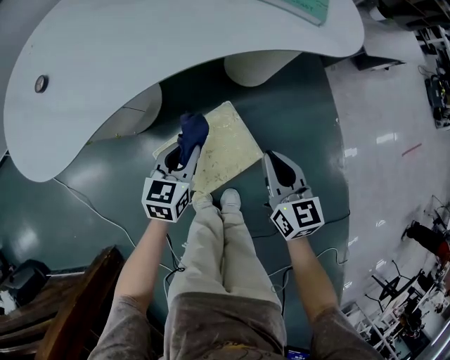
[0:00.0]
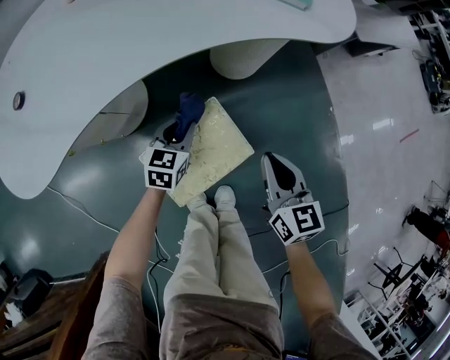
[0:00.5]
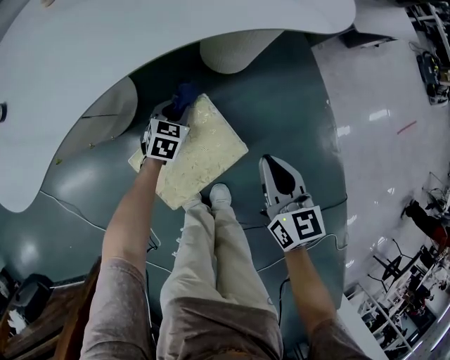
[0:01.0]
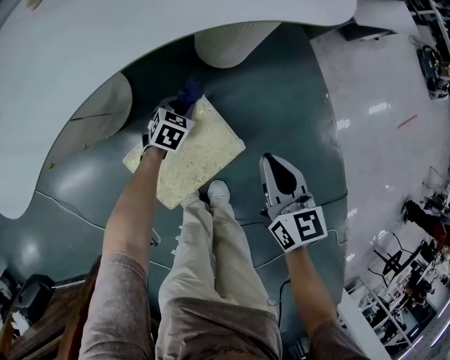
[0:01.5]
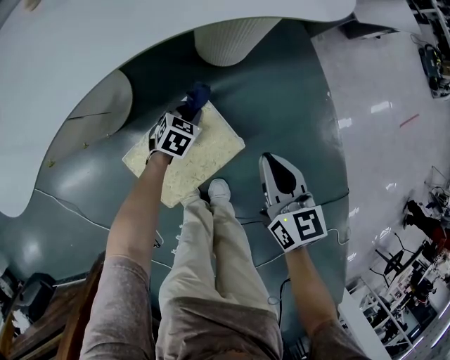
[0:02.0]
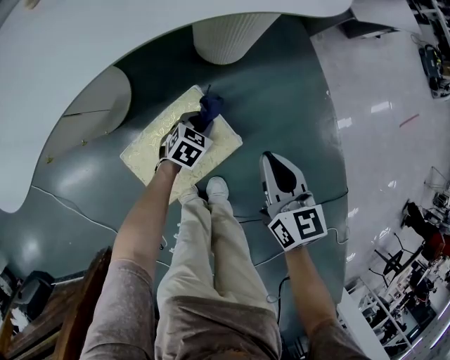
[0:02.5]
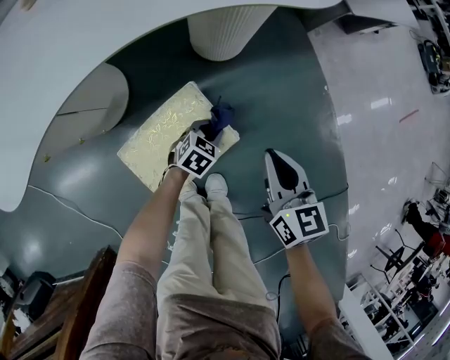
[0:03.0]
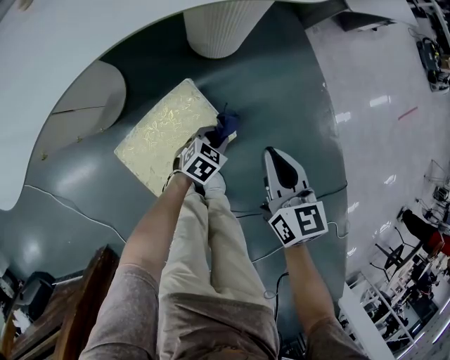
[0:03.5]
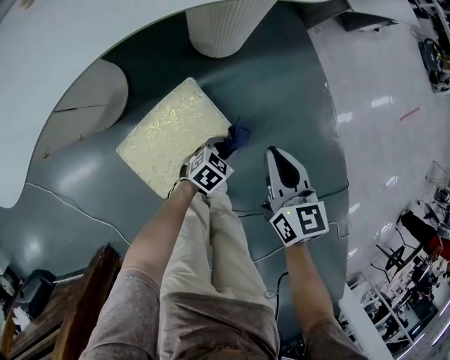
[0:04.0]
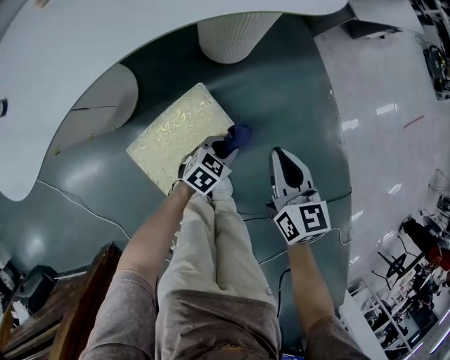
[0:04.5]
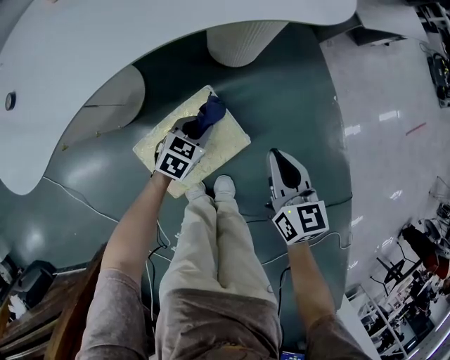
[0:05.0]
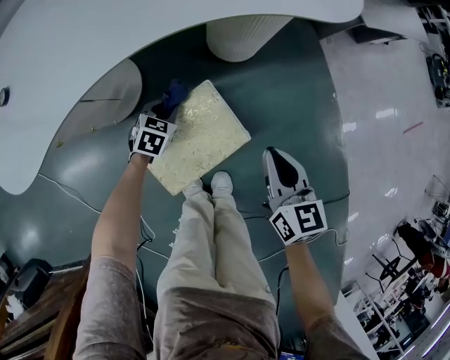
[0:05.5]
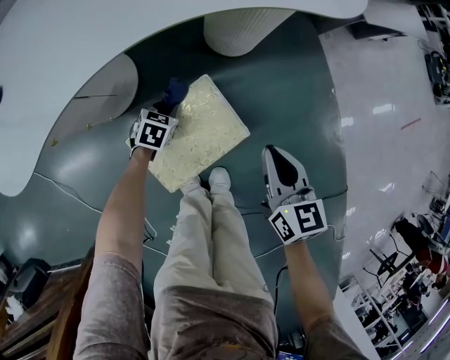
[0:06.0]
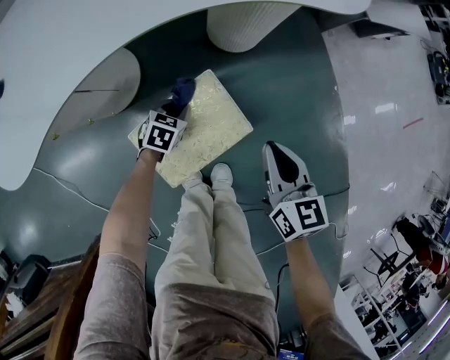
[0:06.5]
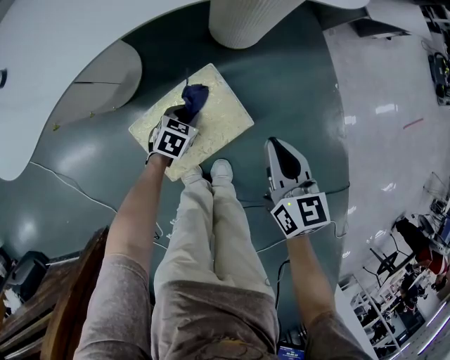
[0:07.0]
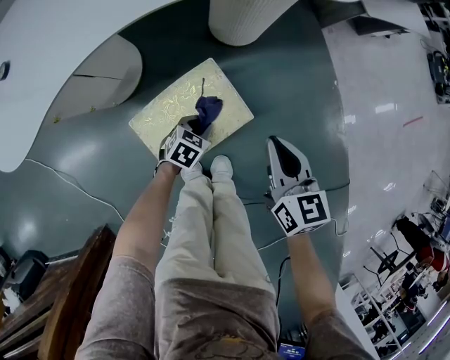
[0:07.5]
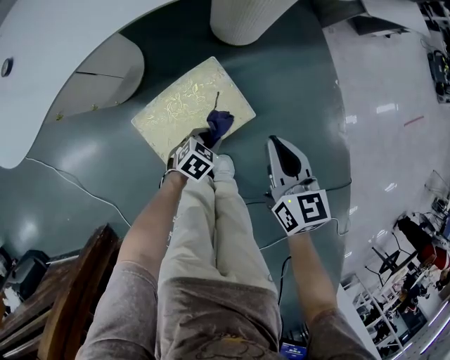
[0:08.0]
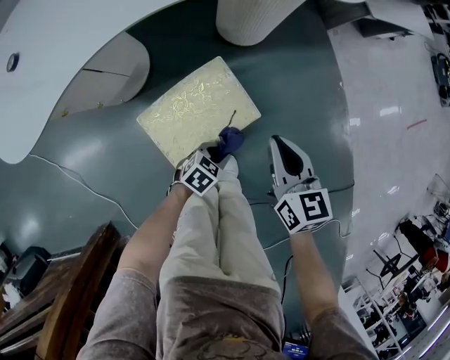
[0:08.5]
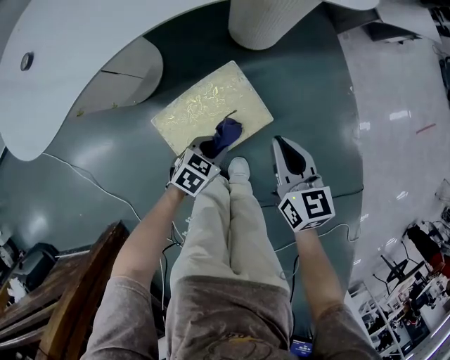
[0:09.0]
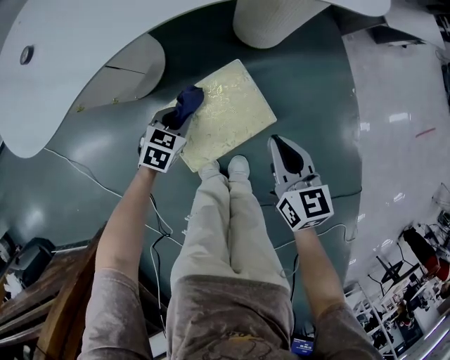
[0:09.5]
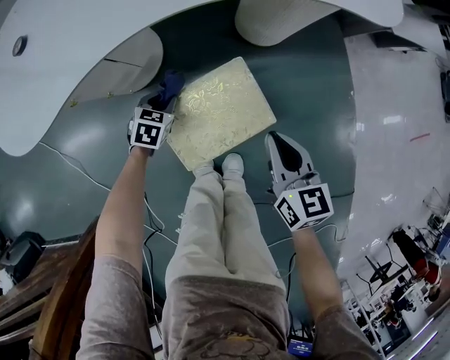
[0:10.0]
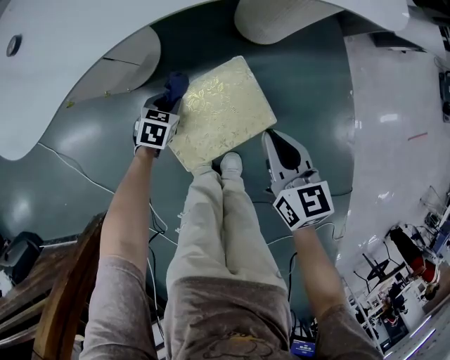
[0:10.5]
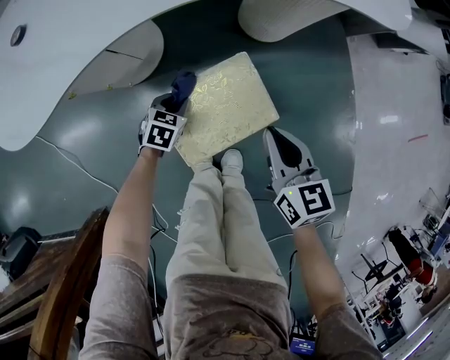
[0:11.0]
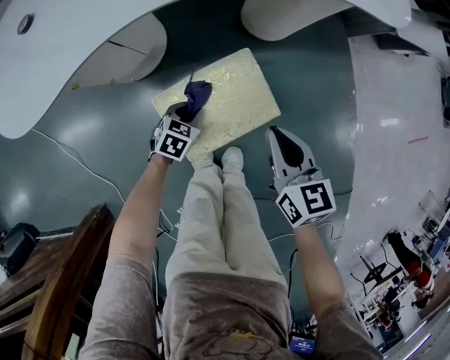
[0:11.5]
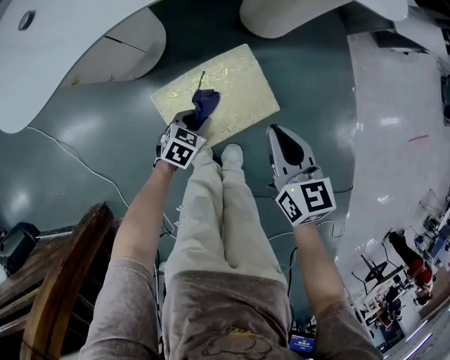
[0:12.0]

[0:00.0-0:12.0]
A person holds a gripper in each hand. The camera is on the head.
0.0 to 2.0 s: The left gripper is displaced downward, to the right and forward by some 25 cm, and changes its angle by some 30 degrees. Meanwhile the right gripper goes about 5 cm to the right.
2.0 to 4.0 s: The left gripper travels to the right and backward by approximately 20 cm.
4.0 to 6.0 s: The left gripper heads to the left, covering some 25 cm, and changes its angle by about 30 degrees.
6.0 to 8.0 s: The left gripper travels to the right and backward by approximately 20 cm.
8.0 to 10.0 s: The left gripper ends up approximately 25 cm from where it was, and rotates approximately 30 degrees. The right gripper ends up approximately 5 cm from where it was.
10.0 to 12.0 s: The left gripper travels backward and to the right by approximately 15 cm.

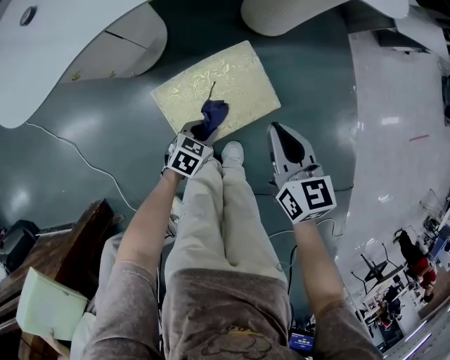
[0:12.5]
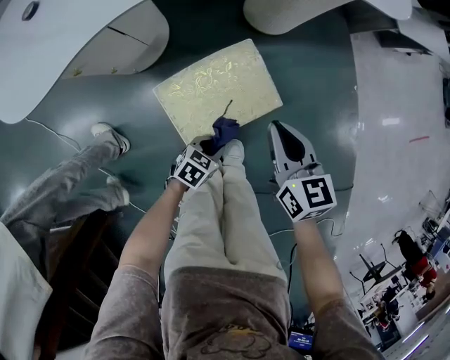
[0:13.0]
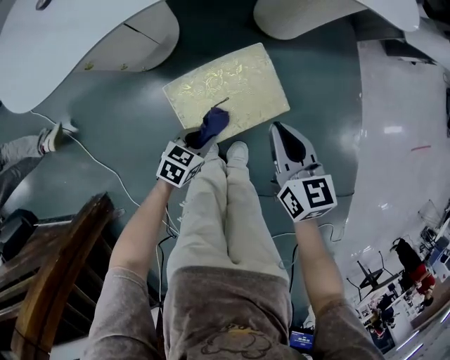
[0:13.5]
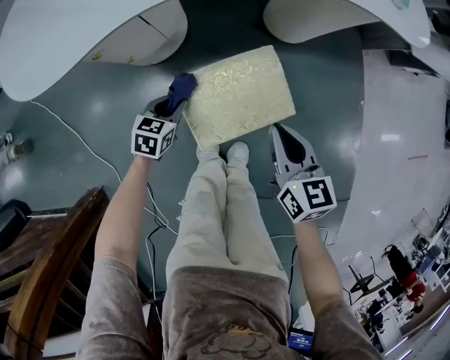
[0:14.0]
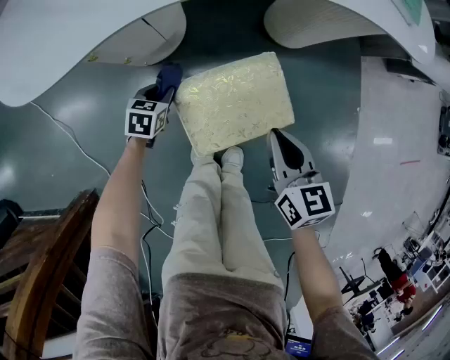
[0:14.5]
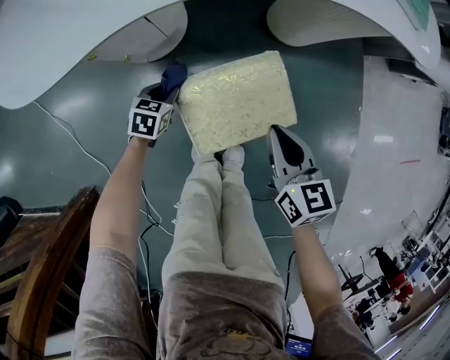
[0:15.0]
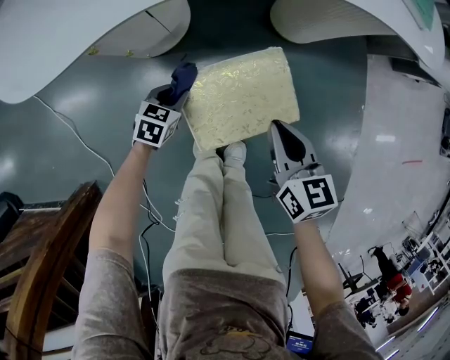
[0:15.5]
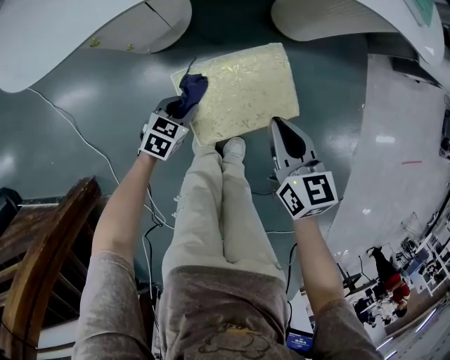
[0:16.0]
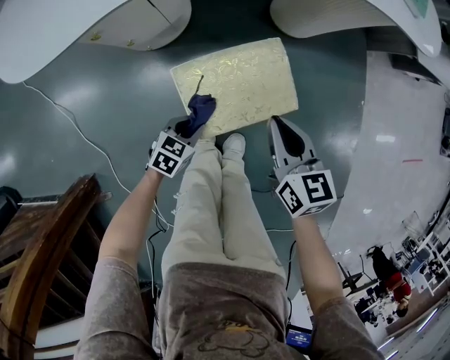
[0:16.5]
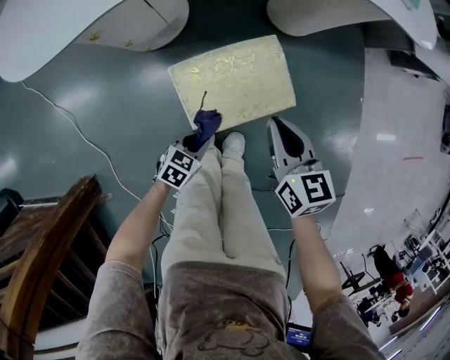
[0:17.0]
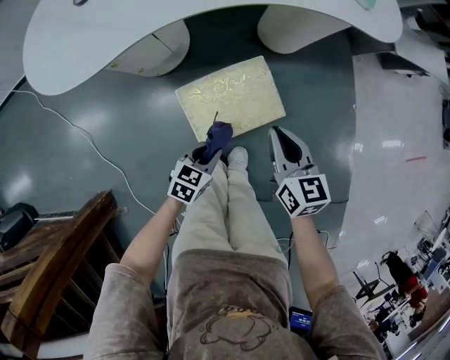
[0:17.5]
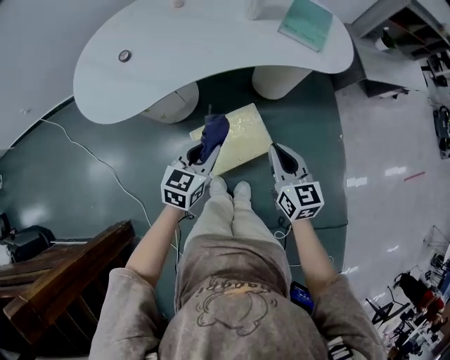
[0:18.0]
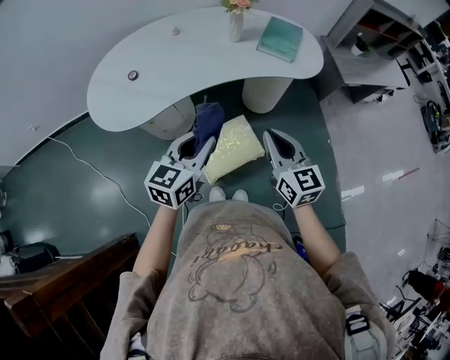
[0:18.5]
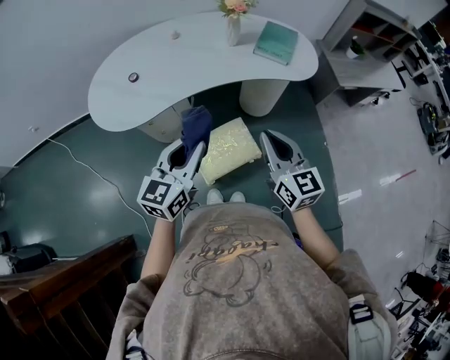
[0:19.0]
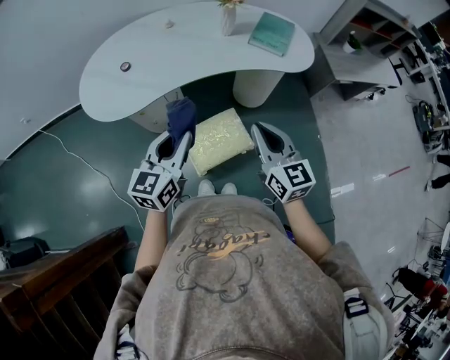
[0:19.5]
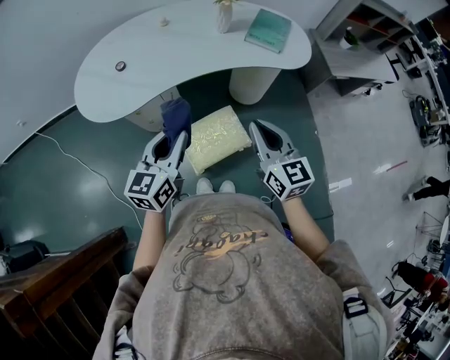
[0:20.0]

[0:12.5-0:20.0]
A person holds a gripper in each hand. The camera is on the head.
12.5 to 14.5 s: The left gripper changes place by about 25 cm, and rotates roughly 20 degrees, while the right gripper ends up about 5 cm from where it was.
14.5 to 16.5 s: The left gripper moves backward and to the right, approximately 20 cm.
16.5 to 18.0 s: The right gripper is displaced upward by approximately 20 cm. Meanwhile the left gripper shifts about 35 cm upward, and rotates about 30 degrees.
18.0 to 20.0 s: Both grippers travel together upward, about 15 cm. The left gripper swivels roughly 20 degrees.

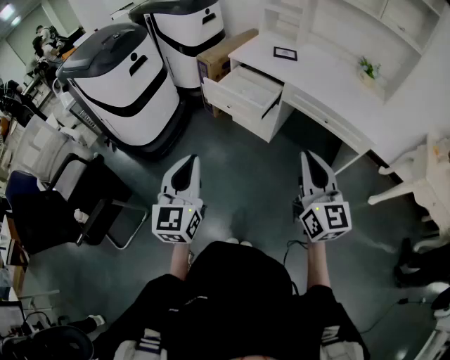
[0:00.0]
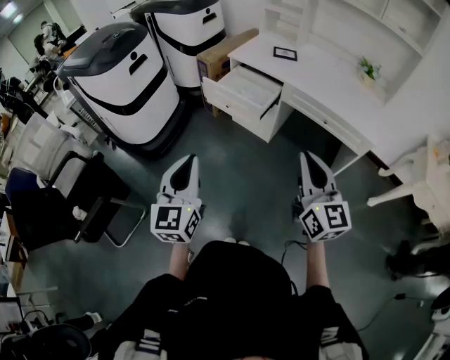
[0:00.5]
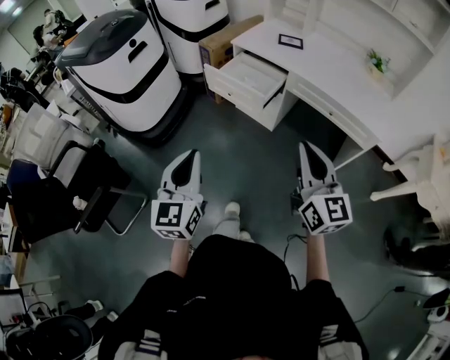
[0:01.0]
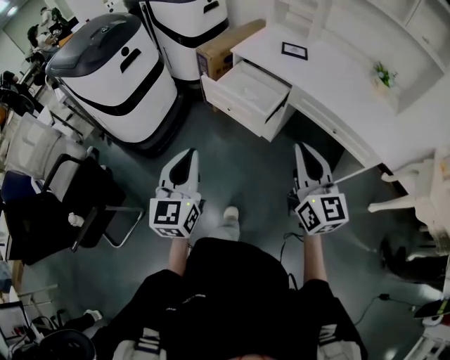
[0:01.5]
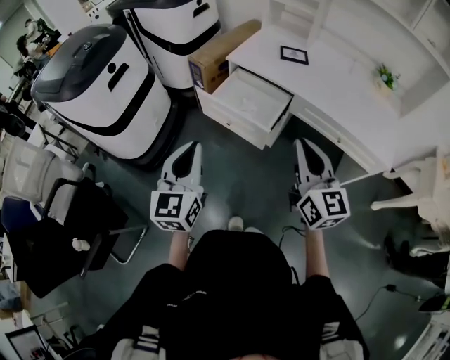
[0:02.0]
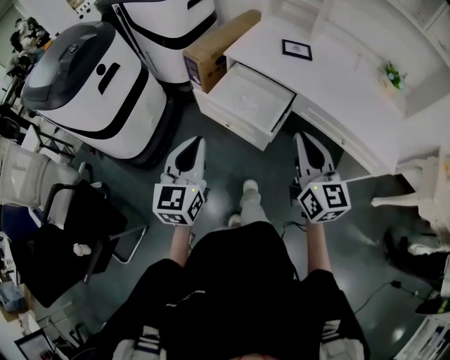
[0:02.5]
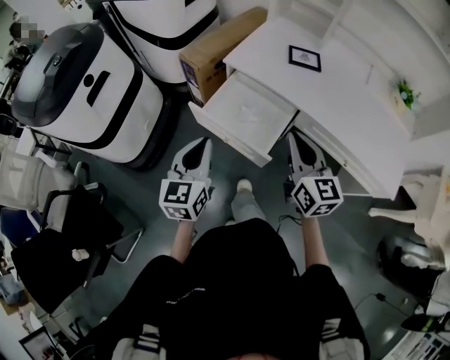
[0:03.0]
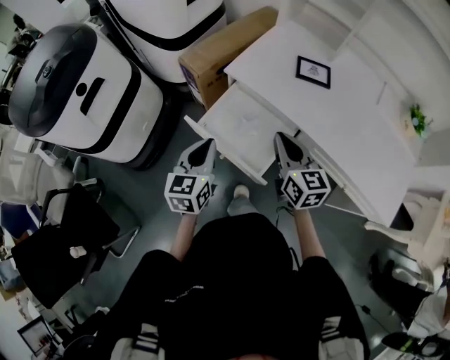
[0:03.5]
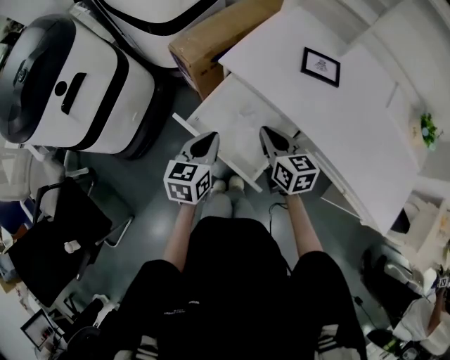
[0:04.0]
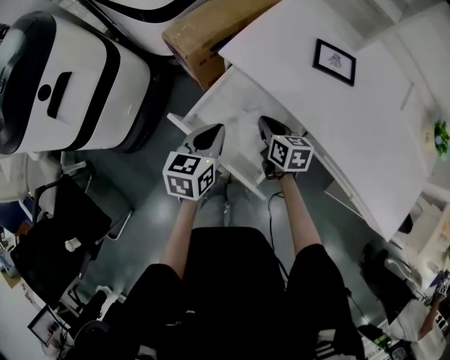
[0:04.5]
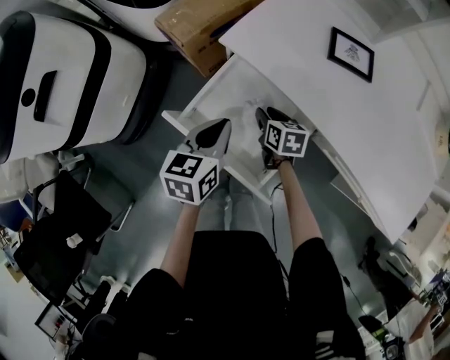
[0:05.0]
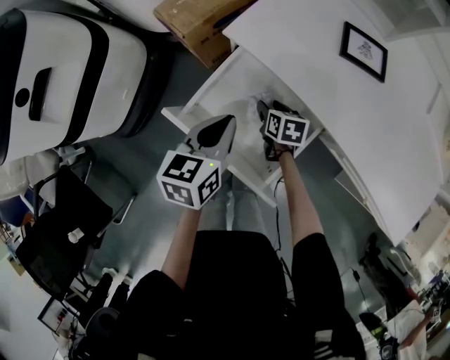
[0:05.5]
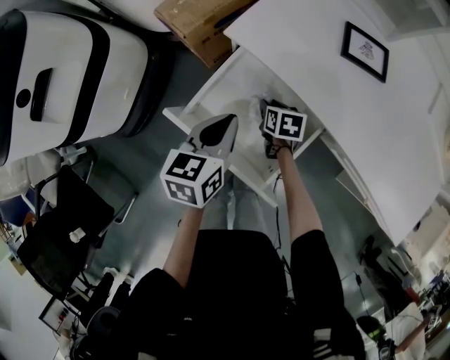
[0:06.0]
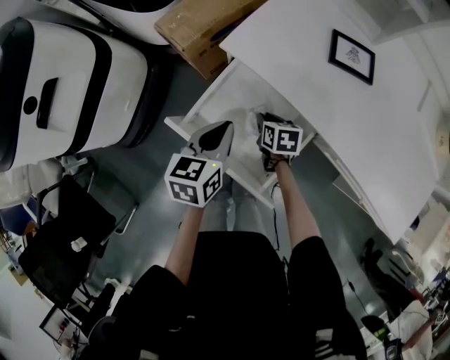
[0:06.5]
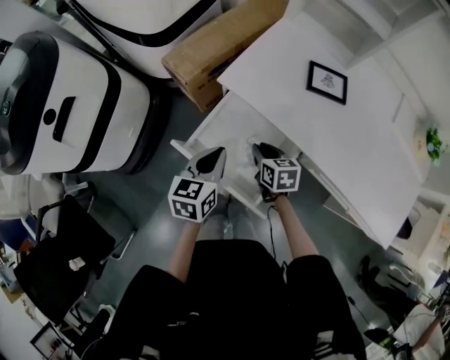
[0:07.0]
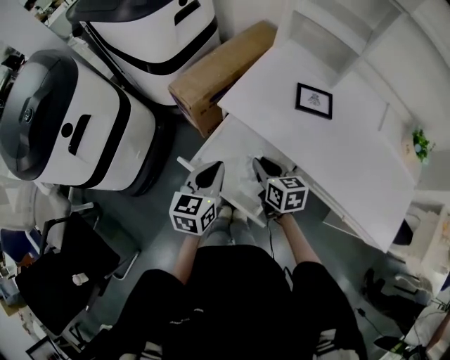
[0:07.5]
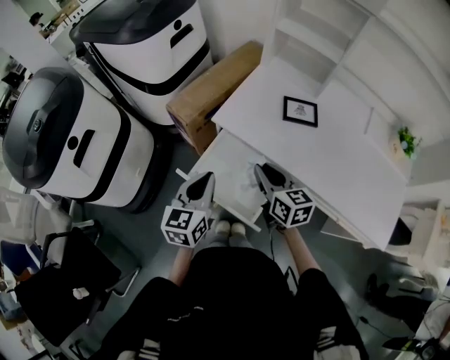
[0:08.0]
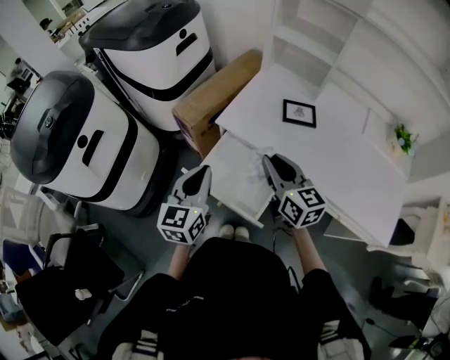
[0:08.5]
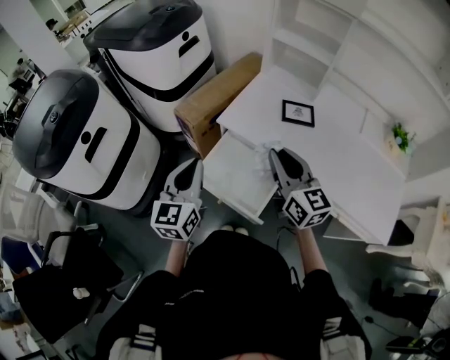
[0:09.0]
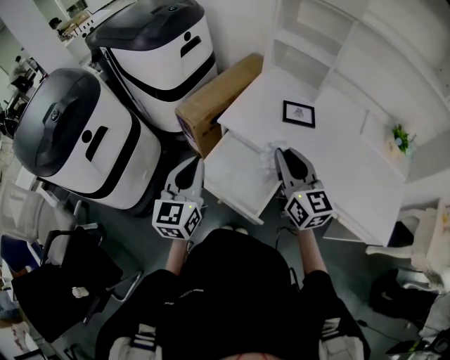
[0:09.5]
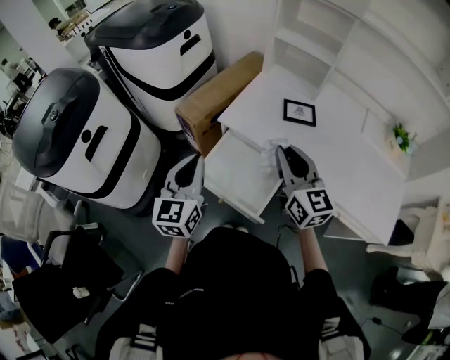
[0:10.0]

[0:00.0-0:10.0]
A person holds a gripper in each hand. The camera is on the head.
0.0 to 2.0 s: Both grippers travel together forward, about 25 cm.
2.0 to 4.0 s: Both grippers travel together forward and downward, approximately 40 cm. The right gripper turns by roughly 40 degrees. Meanwhile the left gripper changes its angle by approximately 30 degrees.
4.0 to 6.0 s: The left gripper shifts approximately 10 cm forward and downward; the right gripper shifts approximately 25 cm downward, tips its fingers downward by some 30 degrees, and opens.
6.0 to 8.0 s: The left gripper heads upward, covering approximately 15 cm, and rotates some 20 degrees, while the right gripper moves upward, approximately 35 cm, and tilts its fingers some 40 degrees upward.
8.0 to 10.0 s: The right gripper travels upward by approximately 15 cm, and changes its angle by about 30 degrees. The left gripper shifts about 10 cm upward.
